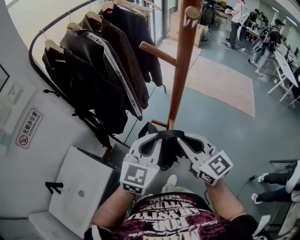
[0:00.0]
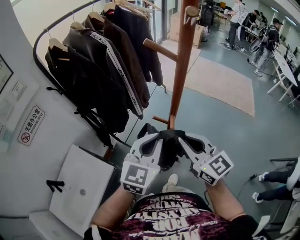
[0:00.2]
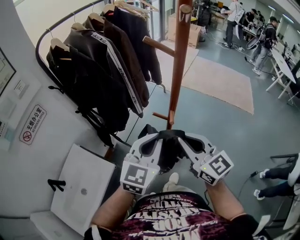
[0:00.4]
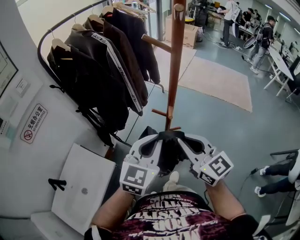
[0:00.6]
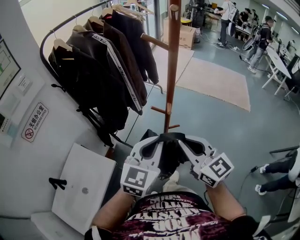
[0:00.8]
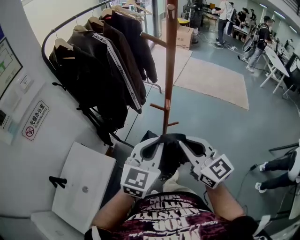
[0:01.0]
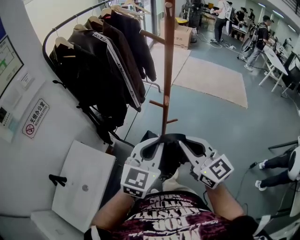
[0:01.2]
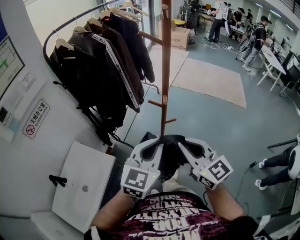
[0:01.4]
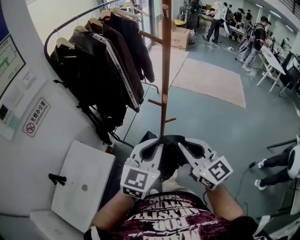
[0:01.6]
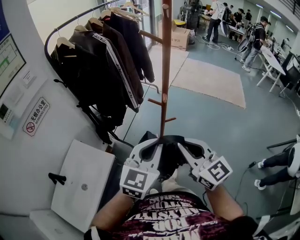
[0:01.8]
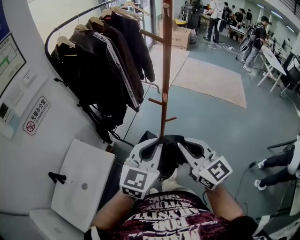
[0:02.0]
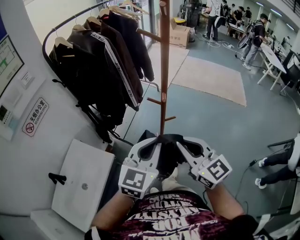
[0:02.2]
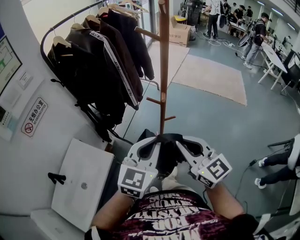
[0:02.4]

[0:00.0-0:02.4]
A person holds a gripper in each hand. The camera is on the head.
0.0 to 1.2 s: Both grippers travel together backward, some 15 cm.
1.2 to 2.4 s: There are only small adjustments of the grippers.

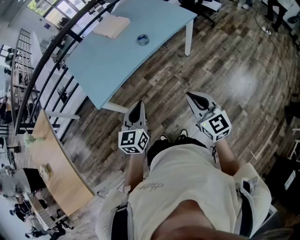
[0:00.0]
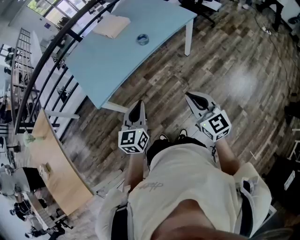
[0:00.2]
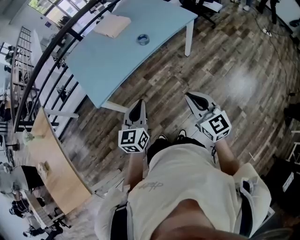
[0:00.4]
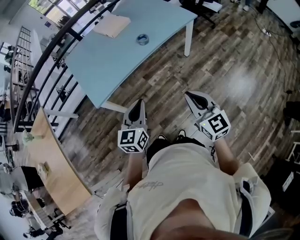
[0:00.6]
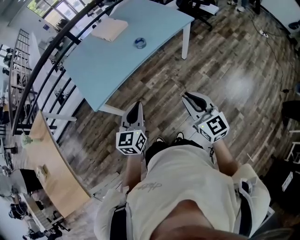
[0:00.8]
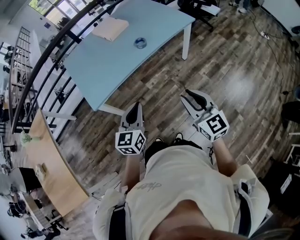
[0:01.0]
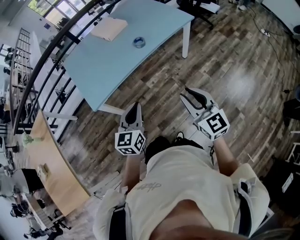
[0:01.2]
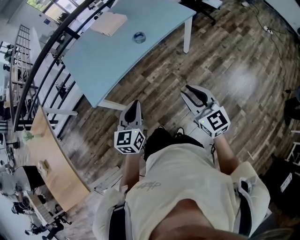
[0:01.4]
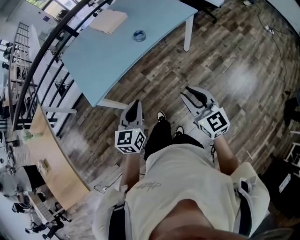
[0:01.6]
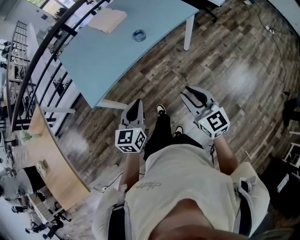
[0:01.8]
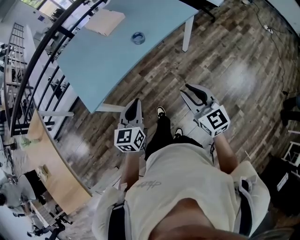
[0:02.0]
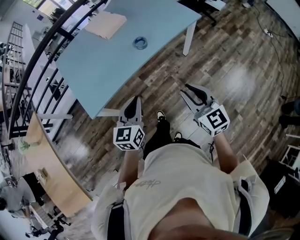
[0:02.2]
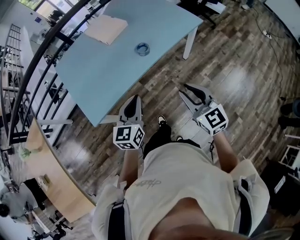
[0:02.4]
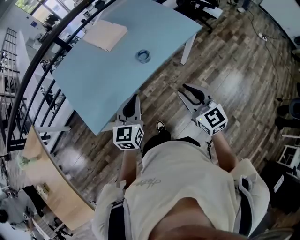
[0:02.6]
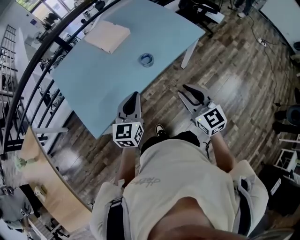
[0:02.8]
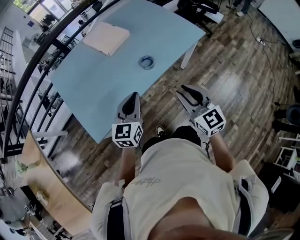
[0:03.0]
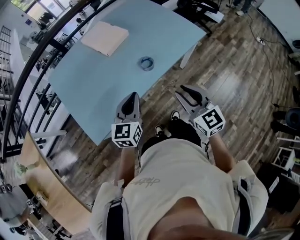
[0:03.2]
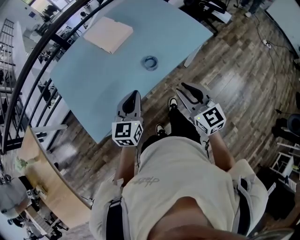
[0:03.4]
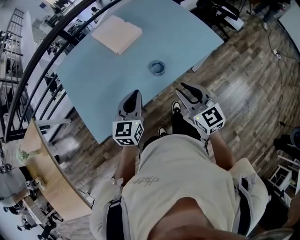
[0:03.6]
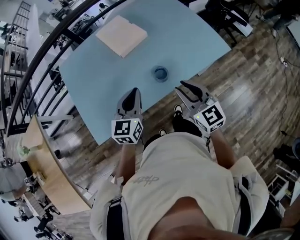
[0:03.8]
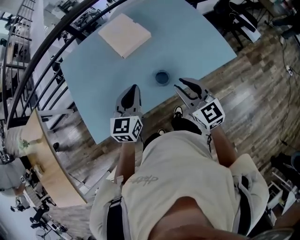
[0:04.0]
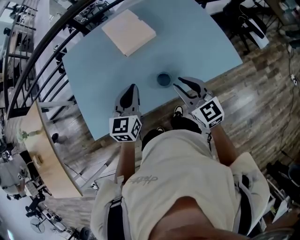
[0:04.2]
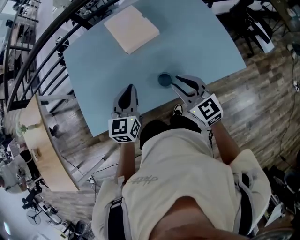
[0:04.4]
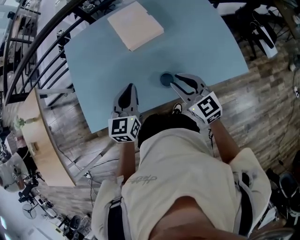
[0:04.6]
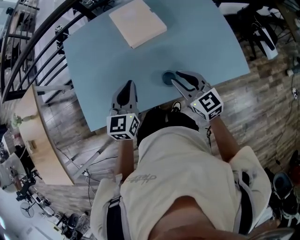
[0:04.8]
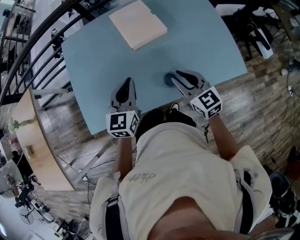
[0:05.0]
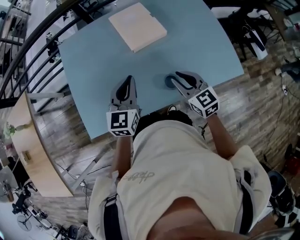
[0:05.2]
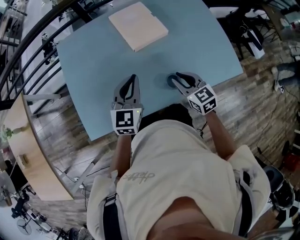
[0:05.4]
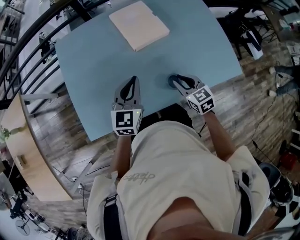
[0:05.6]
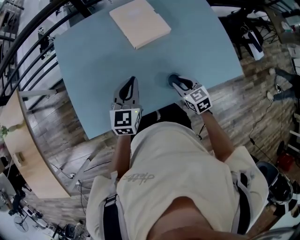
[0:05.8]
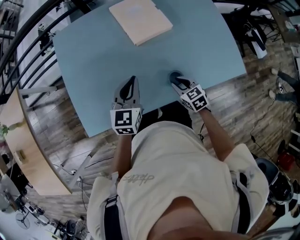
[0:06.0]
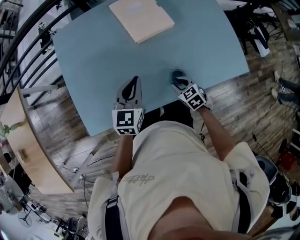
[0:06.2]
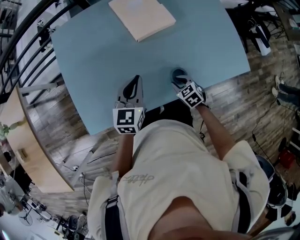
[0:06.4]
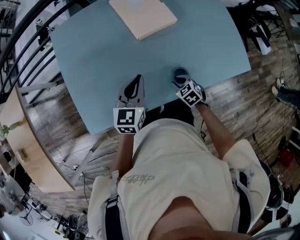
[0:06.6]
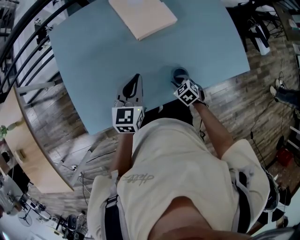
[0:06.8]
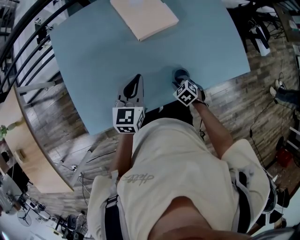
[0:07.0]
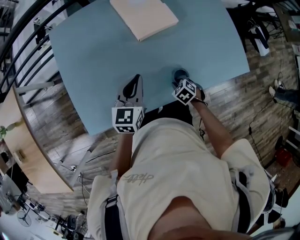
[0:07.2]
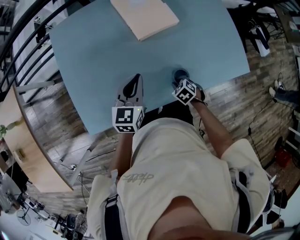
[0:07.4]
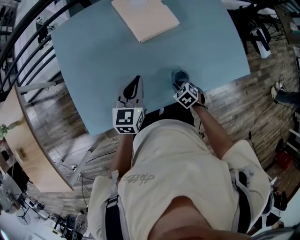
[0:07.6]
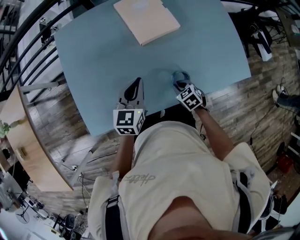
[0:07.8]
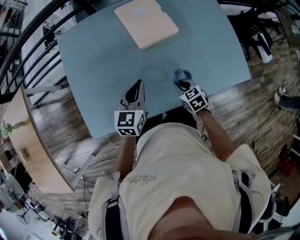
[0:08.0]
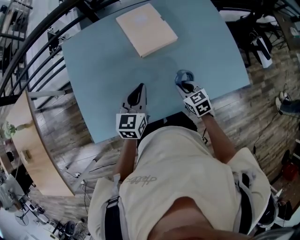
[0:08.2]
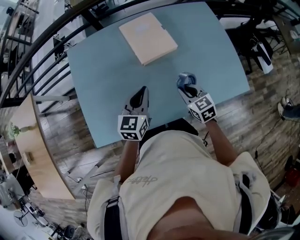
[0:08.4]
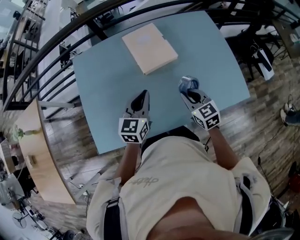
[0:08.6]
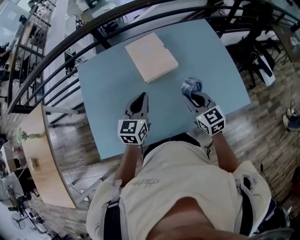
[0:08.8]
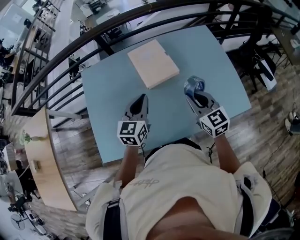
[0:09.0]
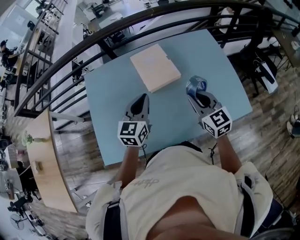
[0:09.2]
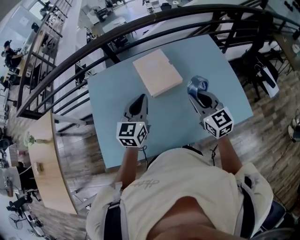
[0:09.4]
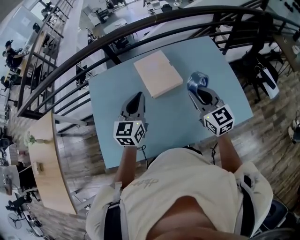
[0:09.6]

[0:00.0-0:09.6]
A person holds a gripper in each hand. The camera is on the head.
0.0 to 1.6 s: The right gripper opens up.
1.6 to 3.2 s: Both grippers move forward, about 30 cm.
3.2 to 4.8 s: The left gripper shifts by about 20 cm, and turns by roughly 30 degrees. Meanwhile the right gripper changes place by about 30 cm, and rotates approximately 30 degrees.
4.8 to 6.4 s: The left gripper shifts about 5 cm downward; the right gripper goes some 25 cm downward, and tilts its fingers some 40 degrees downward.
6.4 to 8.0 s: The right gripper moves some 5 cm.
8.0 to 9.6 s: The left gripper heads upward, covering roughly 15 cm; the right gripper travels upward by approximately 30 cm, and tips its fingers upward by approximately 40 degrees.

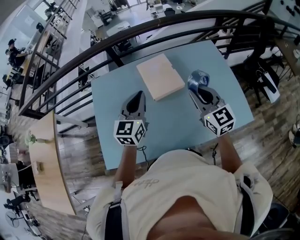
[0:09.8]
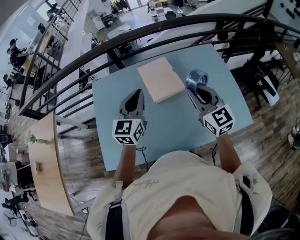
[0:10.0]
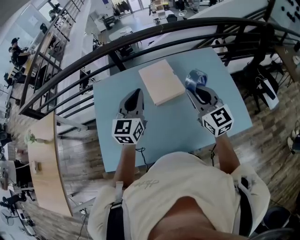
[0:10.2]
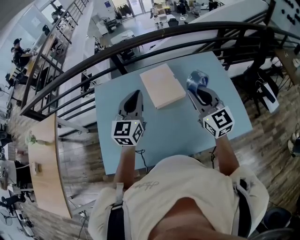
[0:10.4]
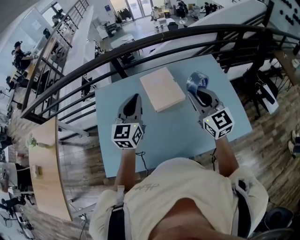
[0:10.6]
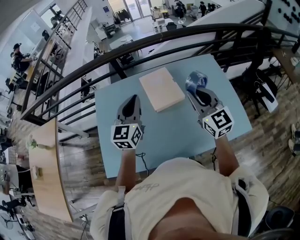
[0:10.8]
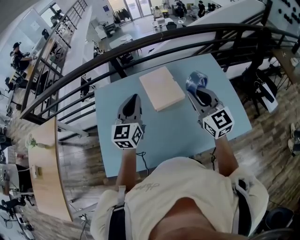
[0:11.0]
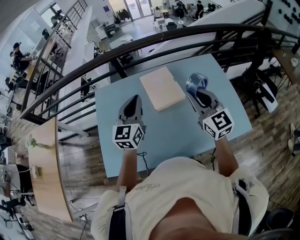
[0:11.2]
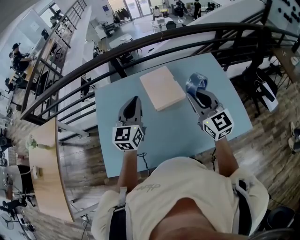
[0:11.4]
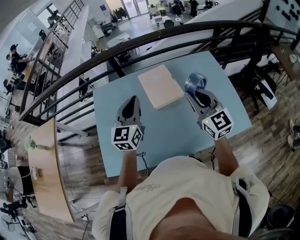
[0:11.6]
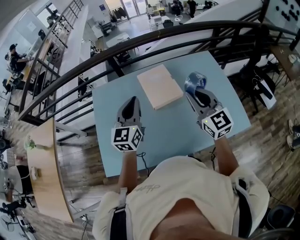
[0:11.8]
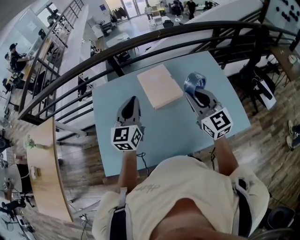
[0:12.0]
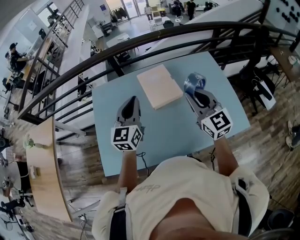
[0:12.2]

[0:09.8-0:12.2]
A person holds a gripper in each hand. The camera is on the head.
9.8 to 11.0 s: The right gripper shifts by roughly 5 cm.
11.0 to 12.2 s: The grippers make only small movements.

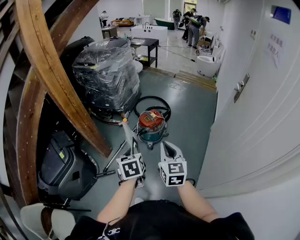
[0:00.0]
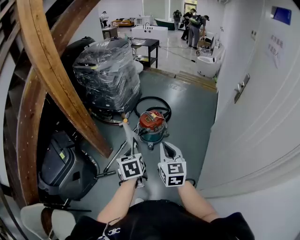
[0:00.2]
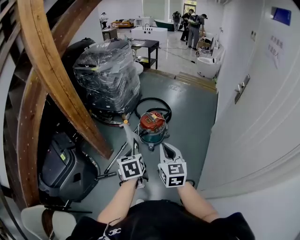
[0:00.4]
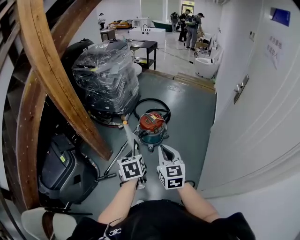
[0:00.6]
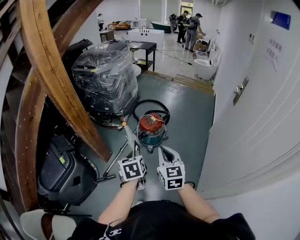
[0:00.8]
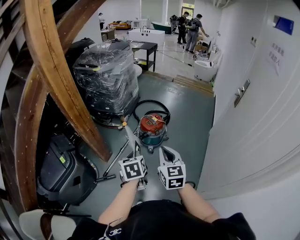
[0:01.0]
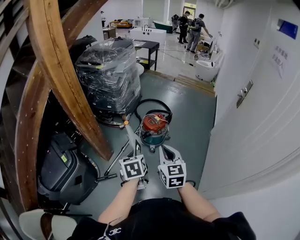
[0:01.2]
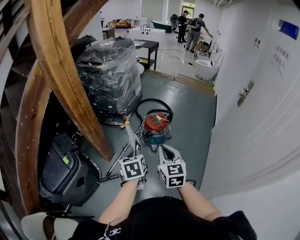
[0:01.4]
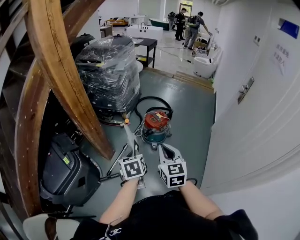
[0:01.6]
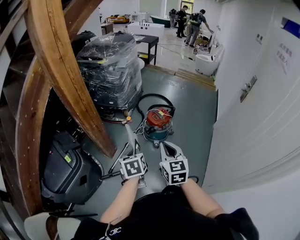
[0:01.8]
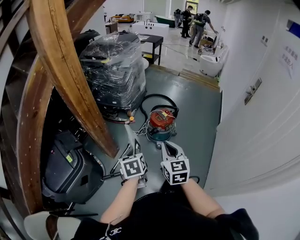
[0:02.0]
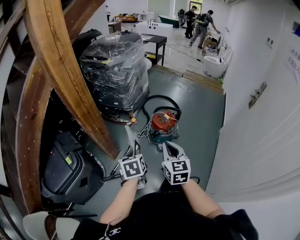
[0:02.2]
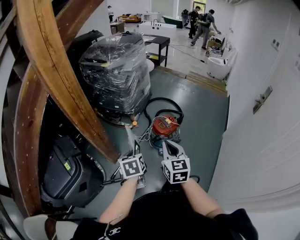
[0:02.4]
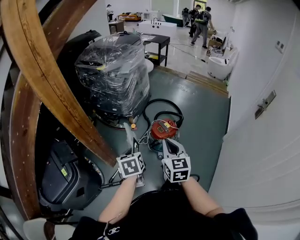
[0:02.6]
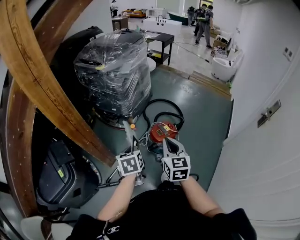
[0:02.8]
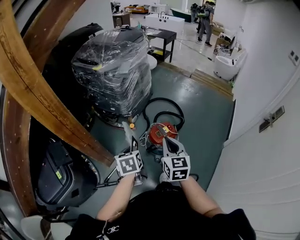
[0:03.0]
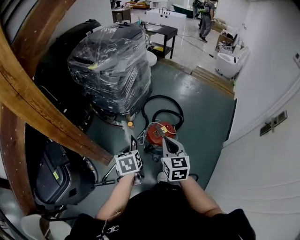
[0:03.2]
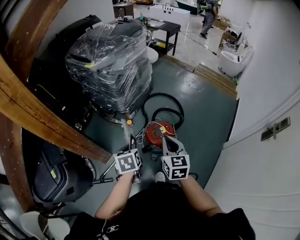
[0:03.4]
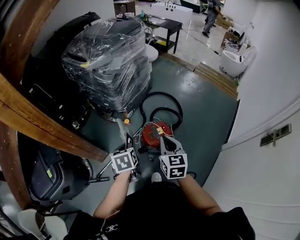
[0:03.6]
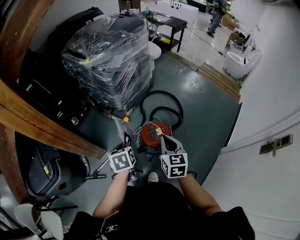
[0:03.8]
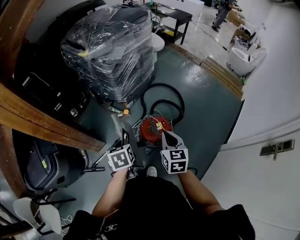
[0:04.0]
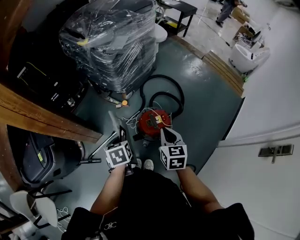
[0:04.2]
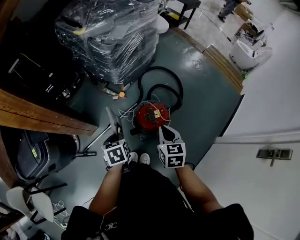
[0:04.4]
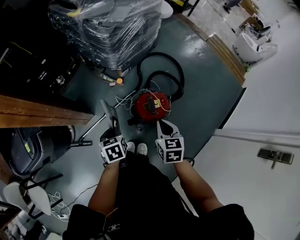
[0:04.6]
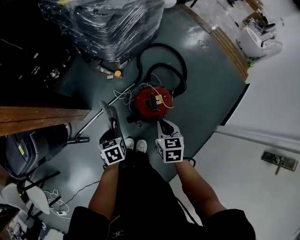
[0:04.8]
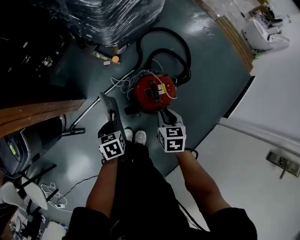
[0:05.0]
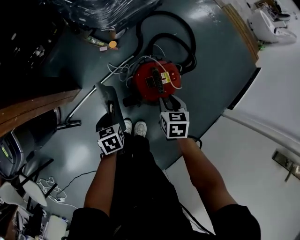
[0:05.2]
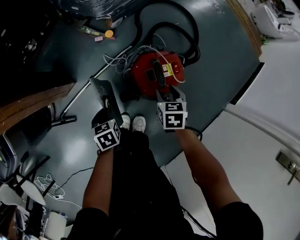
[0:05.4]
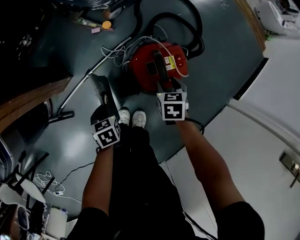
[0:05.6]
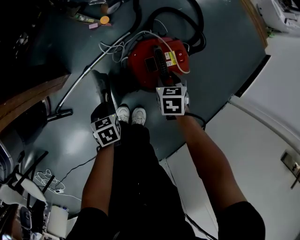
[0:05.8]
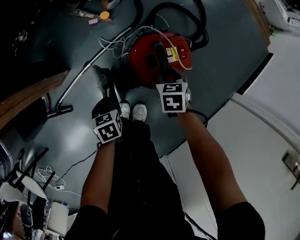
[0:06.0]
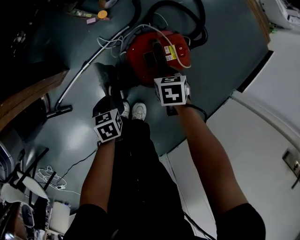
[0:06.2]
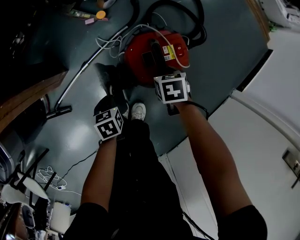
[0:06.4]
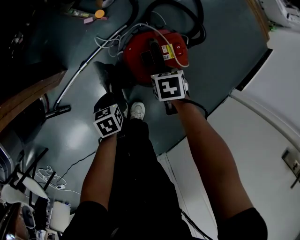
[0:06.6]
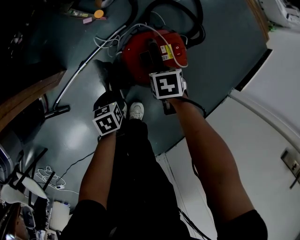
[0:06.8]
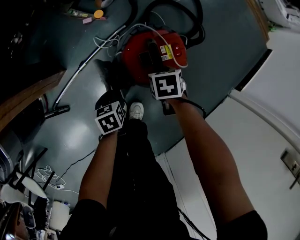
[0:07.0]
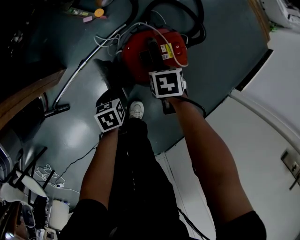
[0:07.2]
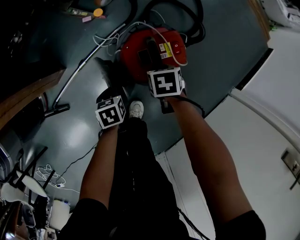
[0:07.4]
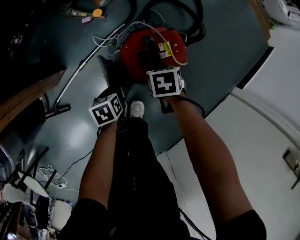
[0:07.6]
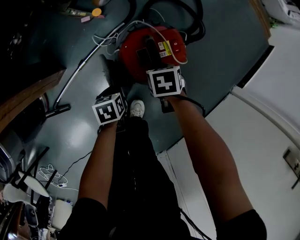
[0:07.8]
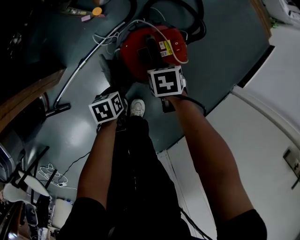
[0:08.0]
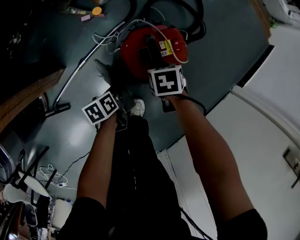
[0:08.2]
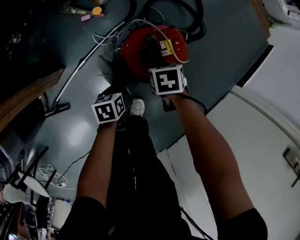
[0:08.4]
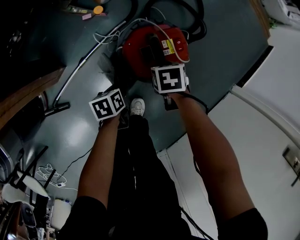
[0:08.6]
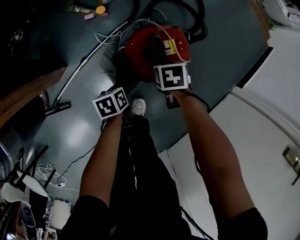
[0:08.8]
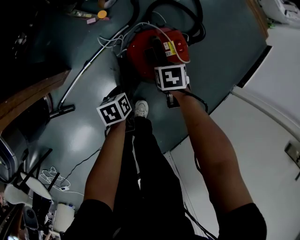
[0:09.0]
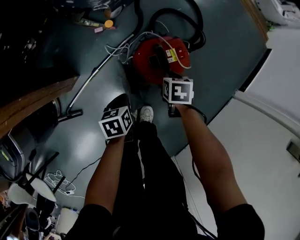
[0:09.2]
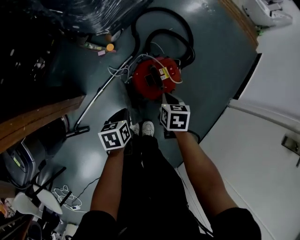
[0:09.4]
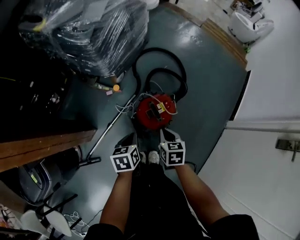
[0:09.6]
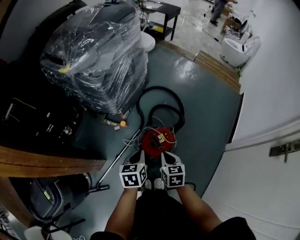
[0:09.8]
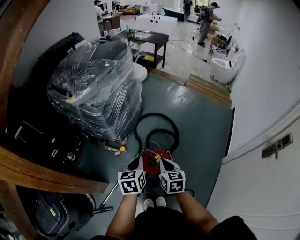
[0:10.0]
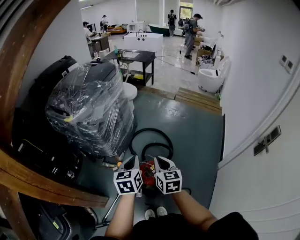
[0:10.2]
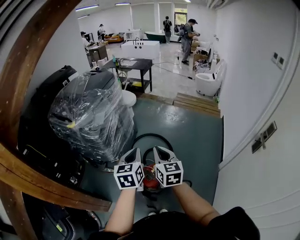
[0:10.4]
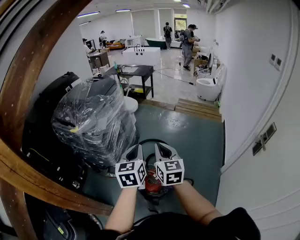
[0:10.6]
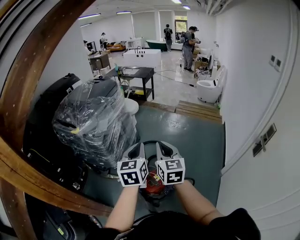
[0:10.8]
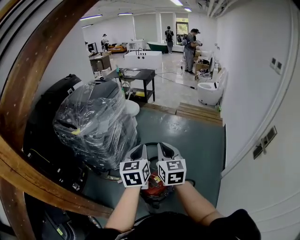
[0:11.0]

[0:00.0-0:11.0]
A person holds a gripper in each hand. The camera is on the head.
0.0 to 1.6 s: Both grippers travel together to the left, some 15 cm.
1.6 to 3.2 s: The two grippers go approximately 30 cm forward.
3.2 to 4.8 s: The left gripper is displaced downward by about 25 cm, and rotates about 20 degrees. Meanwhile the right gripper travels downward and forward by some 30 cm, and swivels some 30 degrees.
4.8 to 6.2 s: Both grippers move downward, about 30 cm. The right gripper swivels approximately 20 degrees, and opens its fingers.
6.2 to 7.8 s: The left gripper shifts by about 5 cm.
7.8 to 9.4 s: The two grippers go approximately 15 cm upward. The left gripper opens, then closes again. Meanwhile the right gripper rotates roughly 20 degrees, and closes up.
9.4 to 11.0 s: The grippers both shift upward by approximately 60 cm. The left gripper tips its fingers upward by about 40 degrees. Meanwhile the right gripper angles its fingers upward, by approximately 50 degrees.
